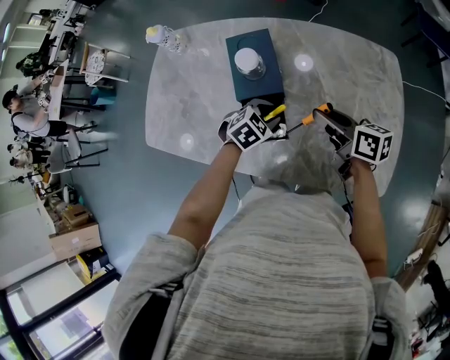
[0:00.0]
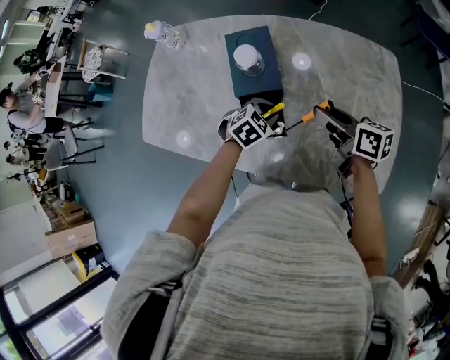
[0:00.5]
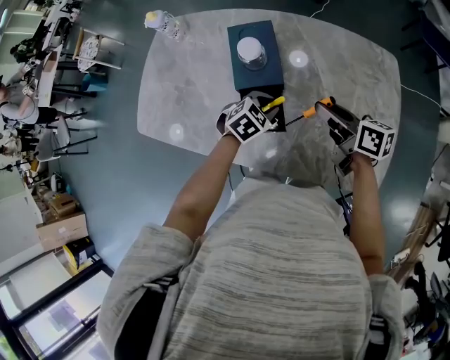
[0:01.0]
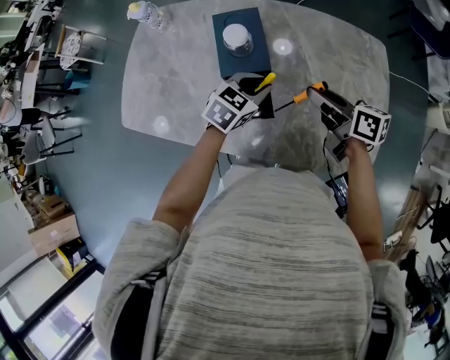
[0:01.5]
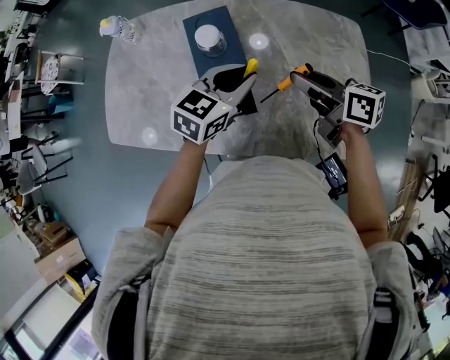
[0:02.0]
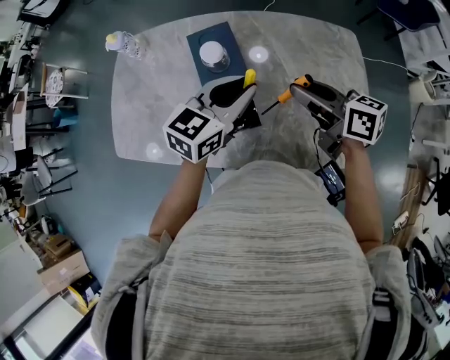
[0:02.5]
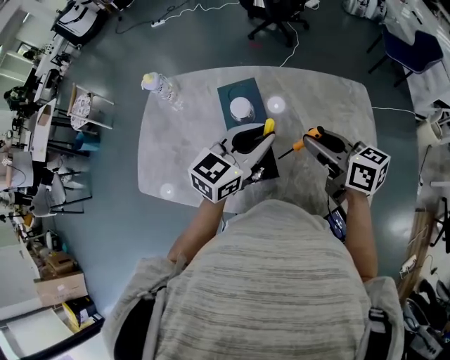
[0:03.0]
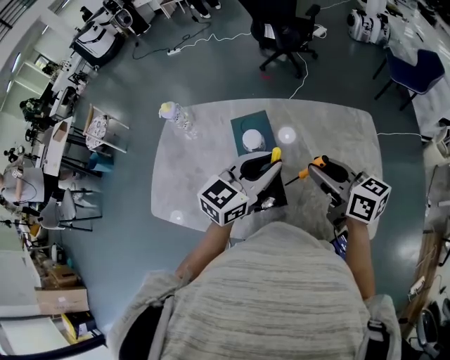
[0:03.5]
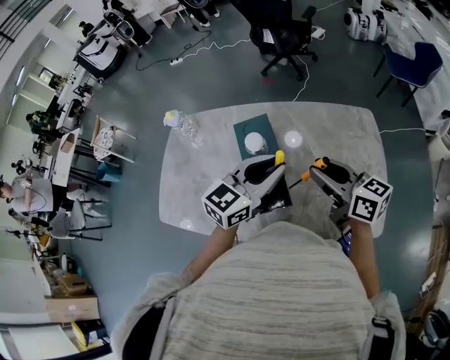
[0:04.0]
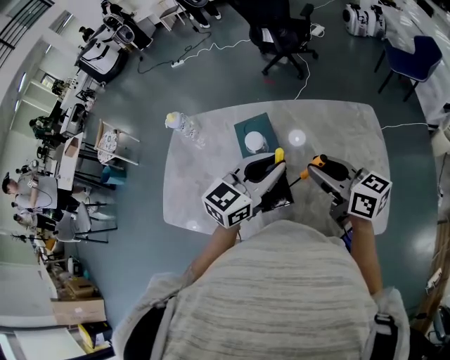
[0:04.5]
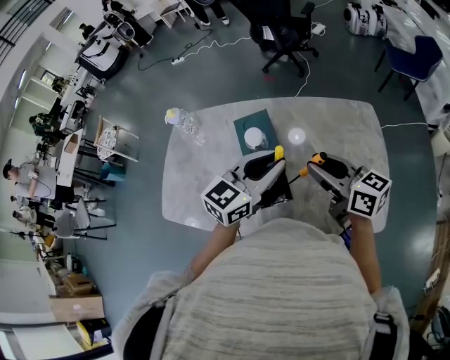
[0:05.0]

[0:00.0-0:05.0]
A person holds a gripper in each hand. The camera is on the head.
0:00.0 to 0:02.5: The left gripper moves upward, roughly 20 cm, and tips its fingers upward by about 40 degrees, while the right gripper travels upward by roughly 10 cm.
0:02.5 to 0:05.0: Both grippers travel together upward, approximately 5 cm.

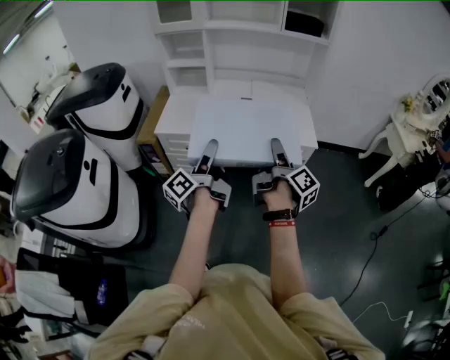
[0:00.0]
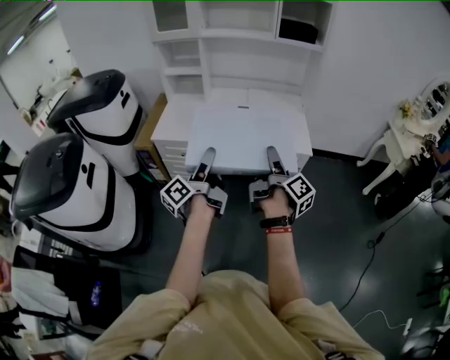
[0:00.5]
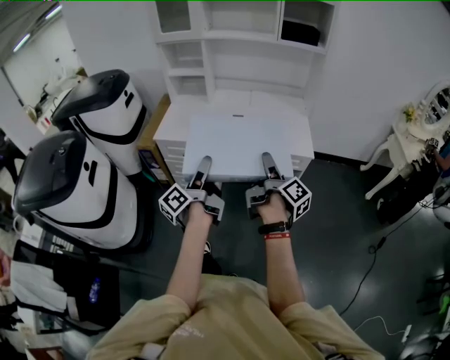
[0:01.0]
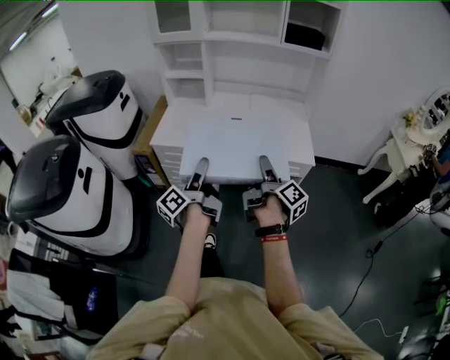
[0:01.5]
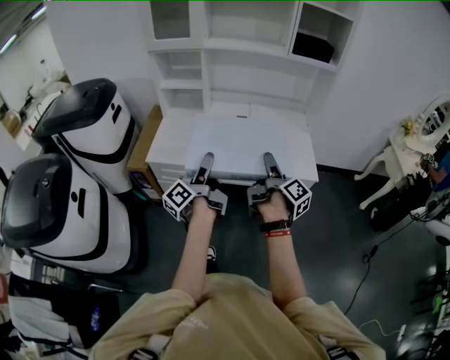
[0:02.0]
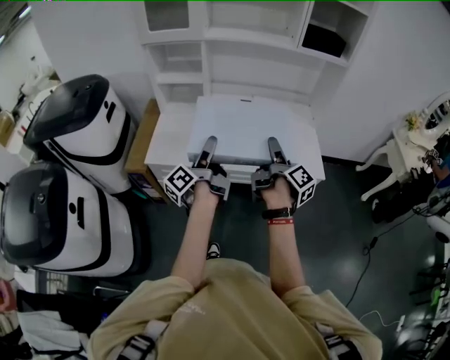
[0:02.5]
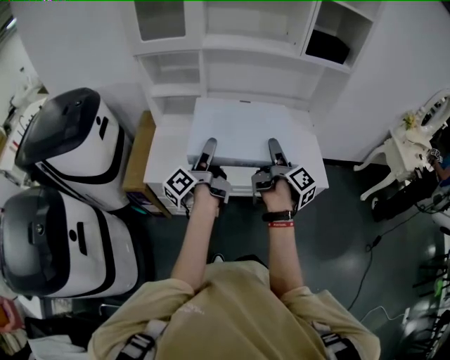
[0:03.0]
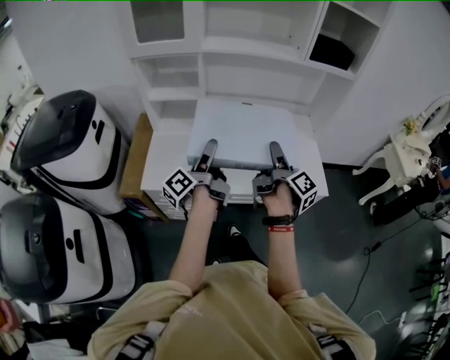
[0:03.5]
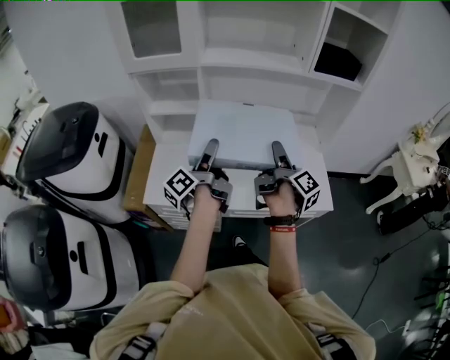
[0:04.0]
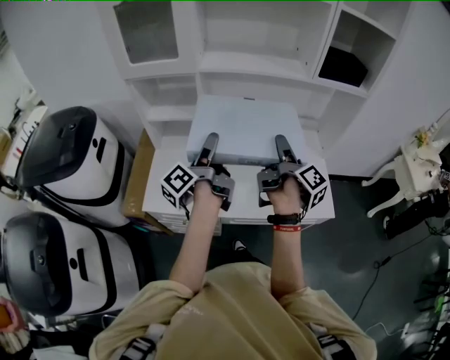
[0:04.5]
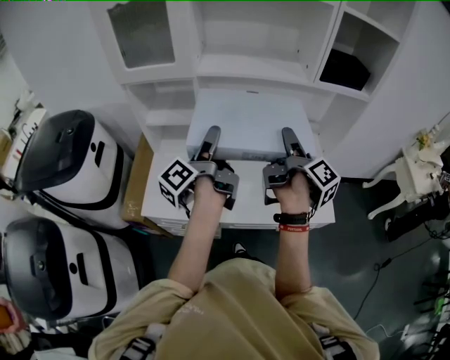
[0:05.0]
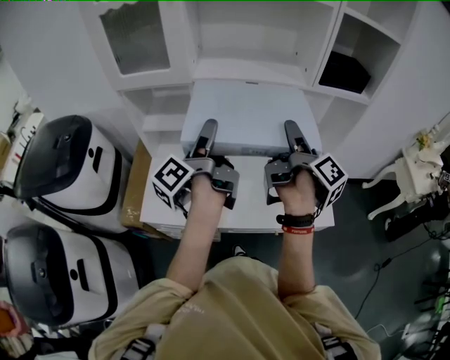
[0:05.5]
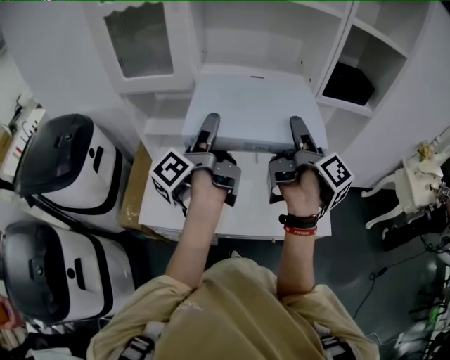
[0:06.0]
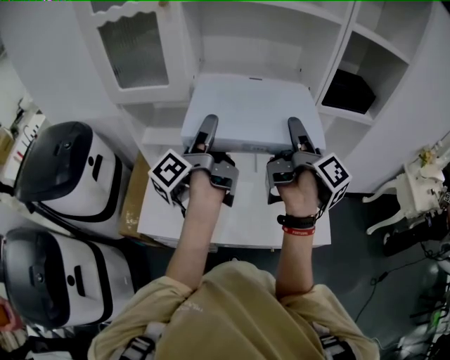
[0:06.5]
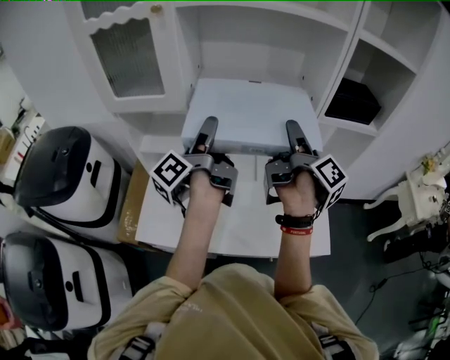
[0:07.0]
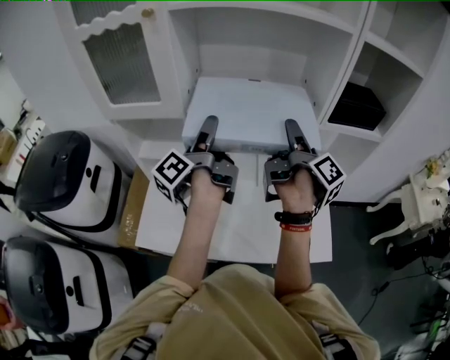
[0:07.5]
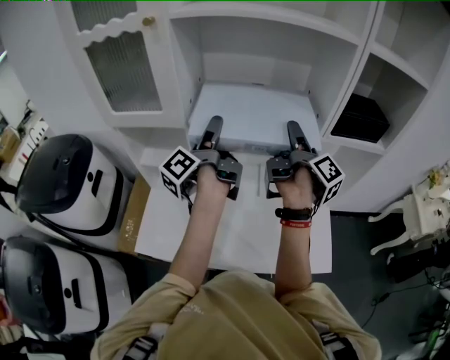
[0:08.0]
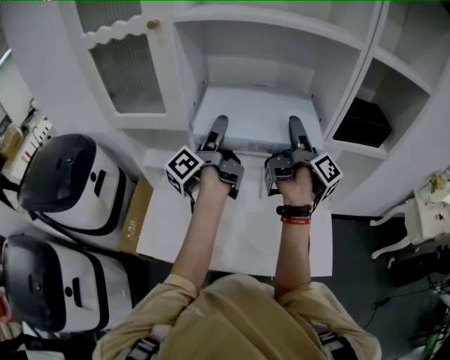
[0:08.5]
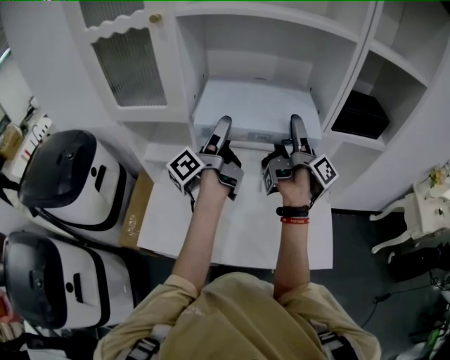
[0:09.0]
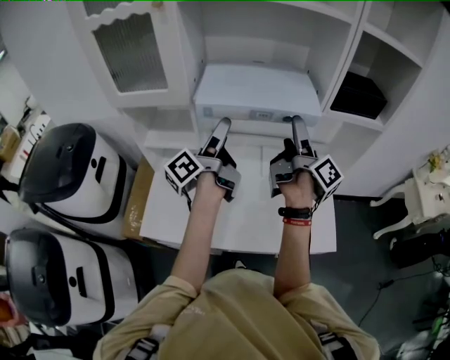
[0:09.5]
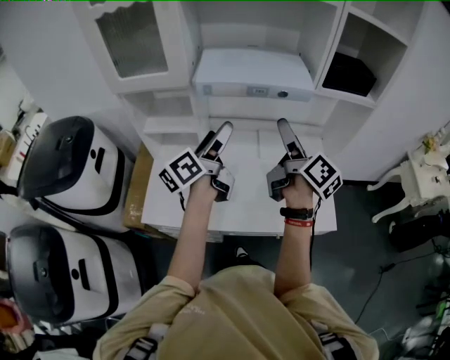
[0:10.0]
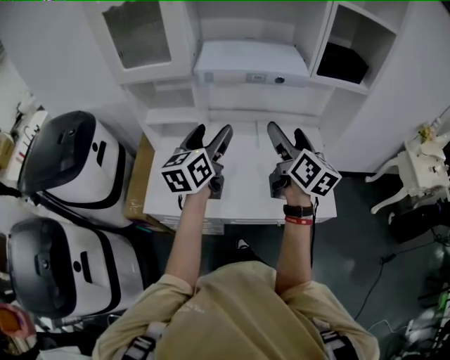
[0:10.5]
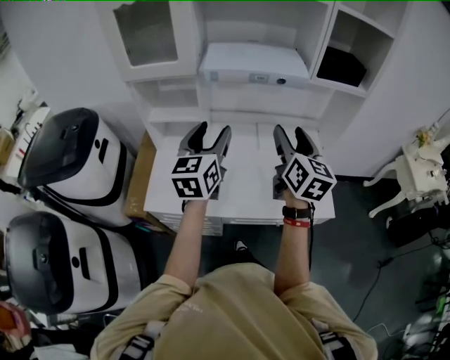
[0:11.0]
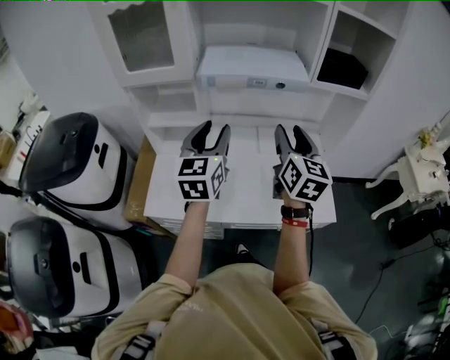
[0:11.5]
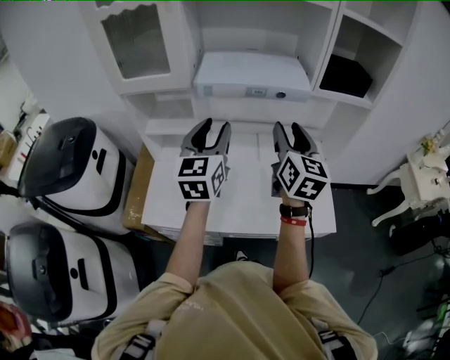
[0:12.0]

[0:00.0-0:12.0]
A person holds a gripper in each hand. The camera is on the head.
0:00.0 to 0:02.0: Both grippers travel together forward, about 15 cm.
0:02.0 to 0:04.0: Both grippers travel together forward, some 25 cm.
0:04.0 to 0:06.0: The two grippers go approximately 20 cm upward and forward.
0:06.0 to 0:08.0: Both grippers travel together forward, about 15 cm.
0:08.0 to 0:10.0: The two grippers go some 15 cm backward. The left gripper swivels approximately 30 degrees, while the right gripper changes its angle by approximately 30 degrees, and opens its fingers.
0:10.0 to 0:12.0: The left gripper reaches about 10 cm backward, then returns, rolls clockwise, seen from behind, by about 50 degrees, and closes its fingers. Meanwhile the right gripper travels backward and back again, approximately 10 cm each way, rolls counterclockwise, seen from behind, by about 50 degrees, and closes.

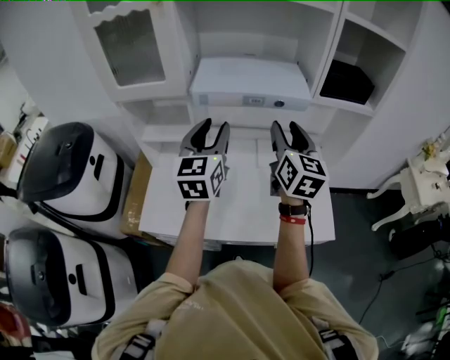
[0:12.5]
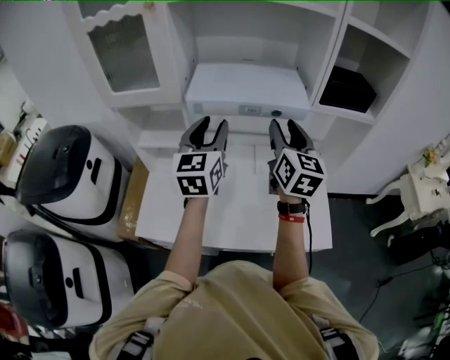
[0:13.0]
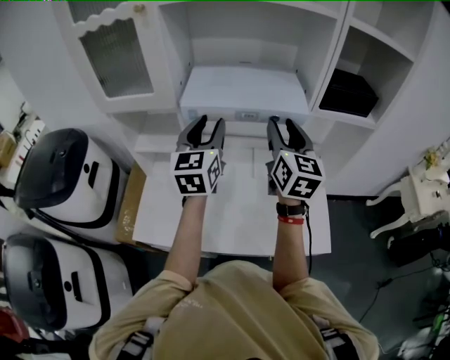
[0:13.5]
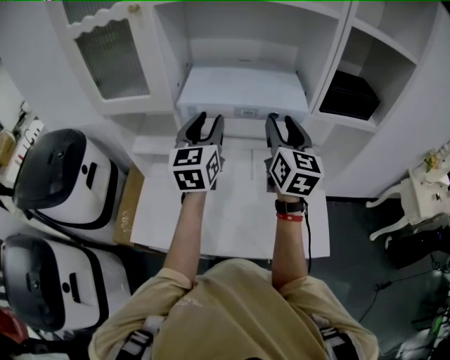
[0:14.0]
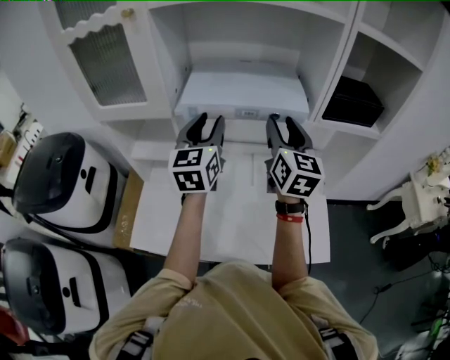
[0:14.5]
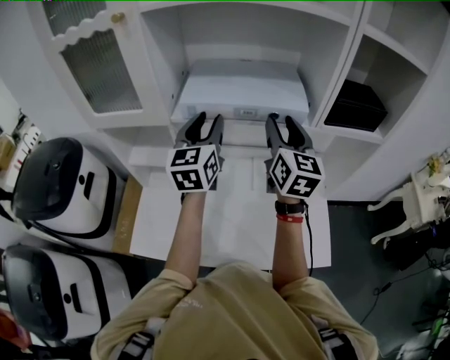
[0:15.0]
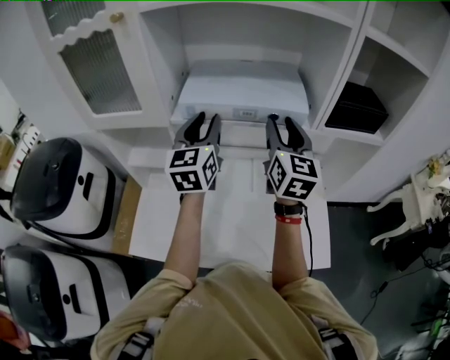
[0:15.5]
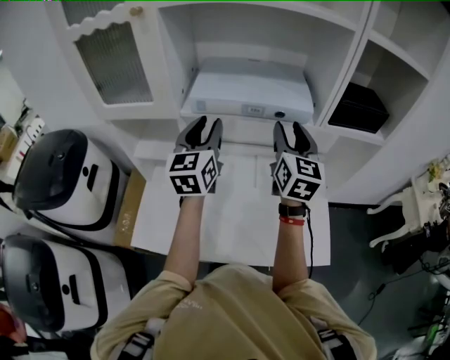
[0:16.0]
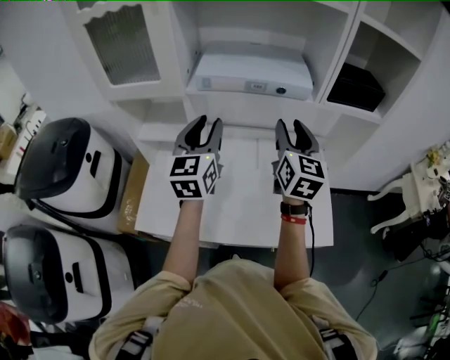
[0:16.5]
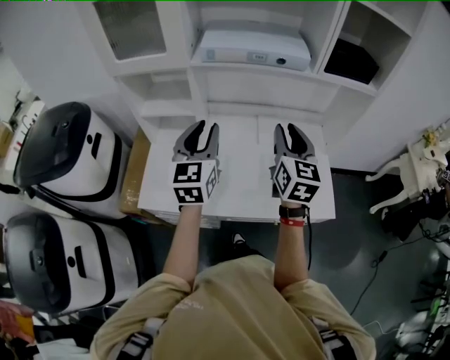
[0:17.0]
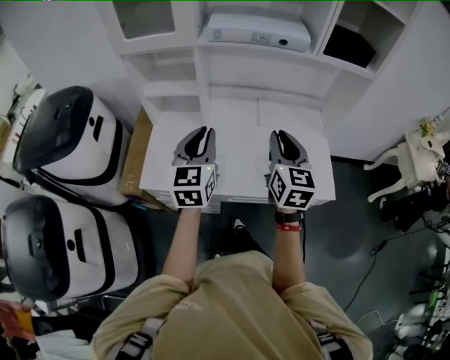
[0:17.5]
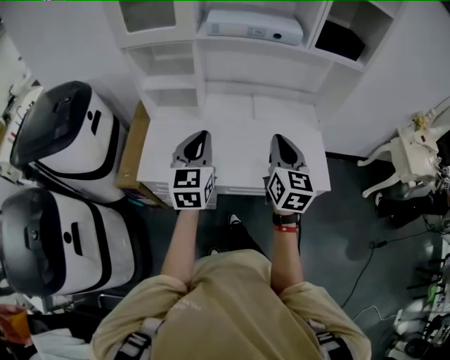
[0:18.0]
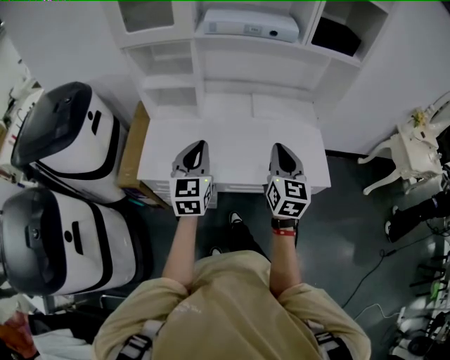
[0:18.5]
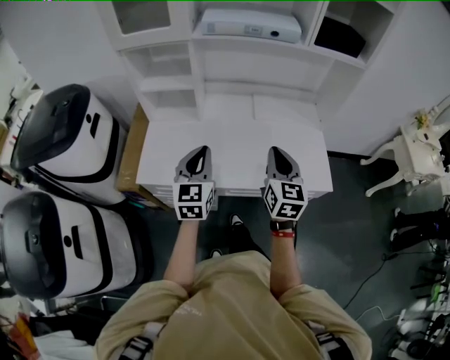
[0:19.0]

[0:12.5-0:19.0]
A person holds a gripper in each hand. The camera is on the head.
0:12.5 to 0:14.5: The two grippers go approximately 10 cm forward.
0:14.5 to 0:17.0: The left gripper shifts some 15 cm backward; the right gripper shifts about 20 cm backward and downward.
0:17.0 to 0:19.0: The grippers both shift backward and downward by roughly 20 cm.

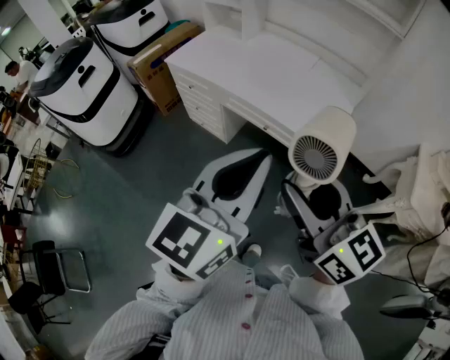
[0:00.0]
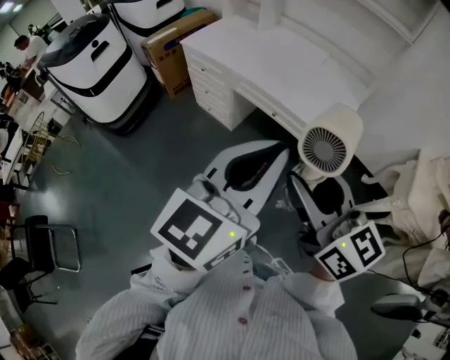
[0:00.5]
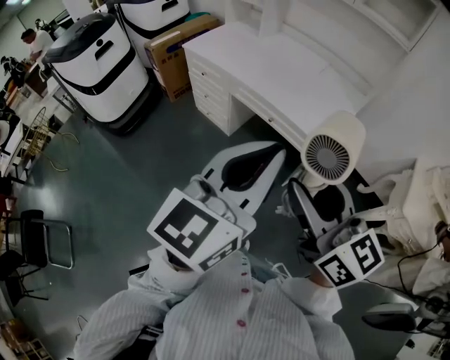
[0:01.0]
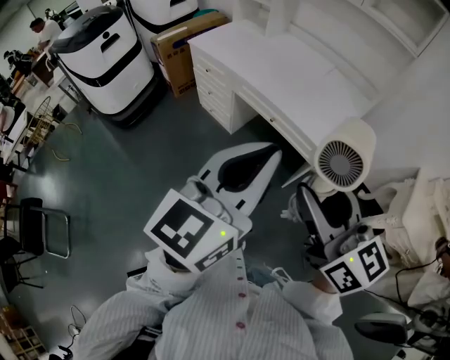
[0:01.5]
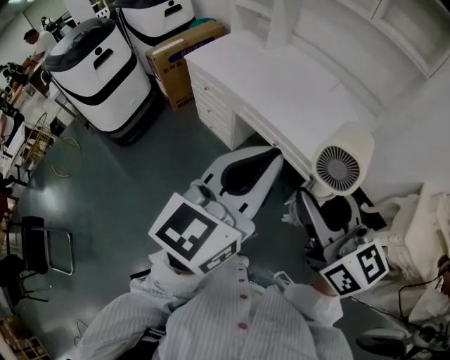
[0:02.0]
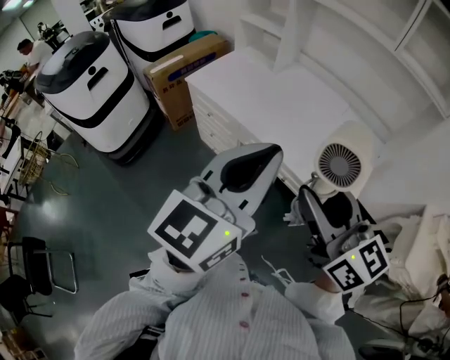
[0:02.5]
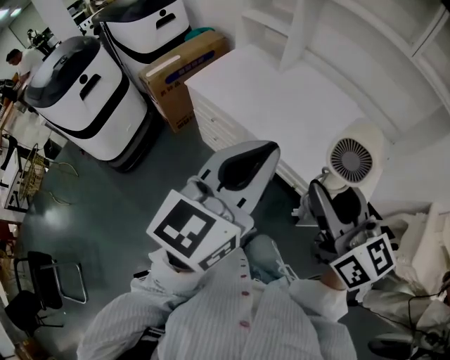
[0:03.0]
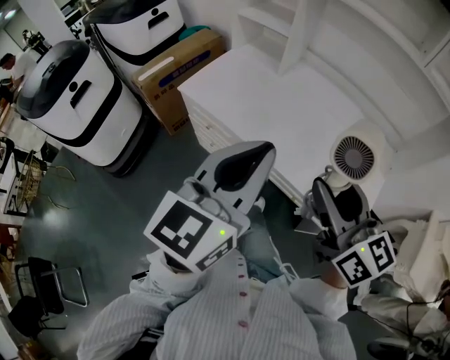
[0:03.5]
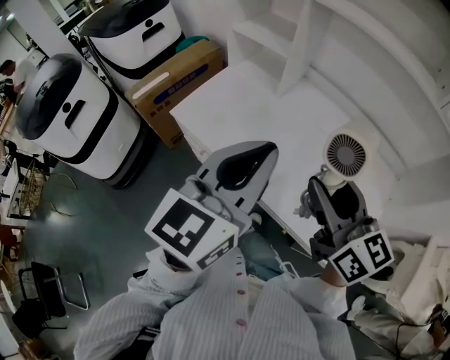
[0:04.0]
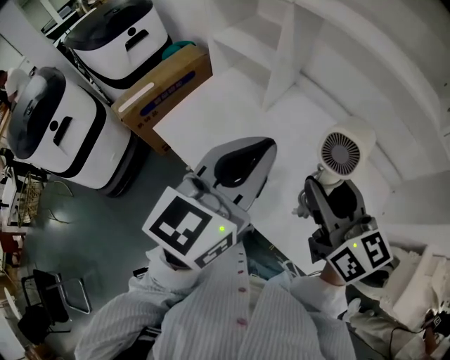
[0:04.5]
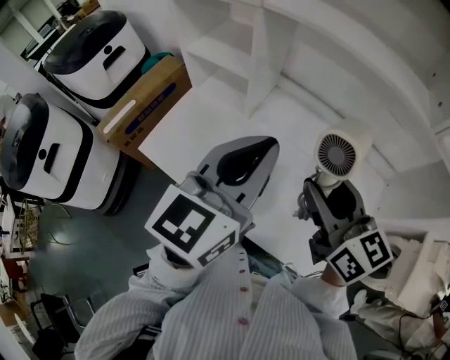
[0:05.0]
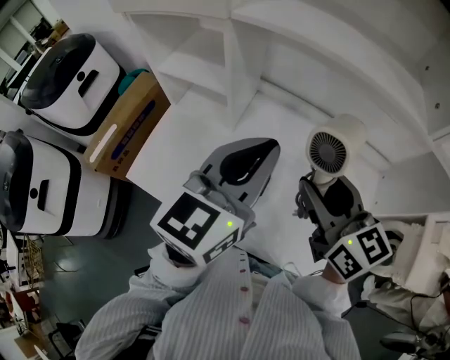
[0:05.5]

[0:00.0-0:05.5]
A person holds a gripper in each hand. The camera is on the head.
0:00.0 to 0:02.0: The left gripper moves forward, about 5 cm.
0:02.0 to 0:03.5: The left gripper moves forward and to the left, roughly 30 cm. The right gripper travels forward by some 30 cm.
0:03.5 to 0:05.5: The two grippers go some 35 cm forward.
